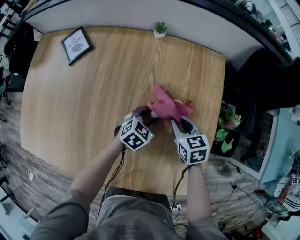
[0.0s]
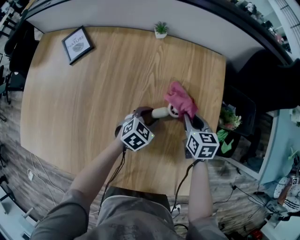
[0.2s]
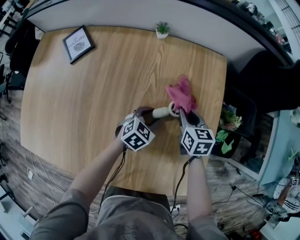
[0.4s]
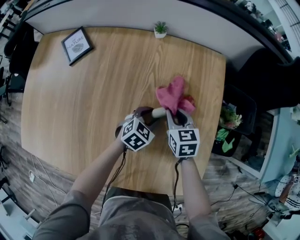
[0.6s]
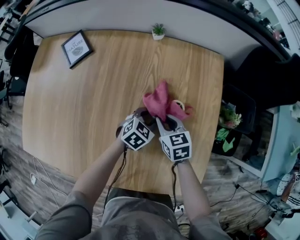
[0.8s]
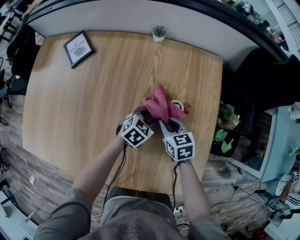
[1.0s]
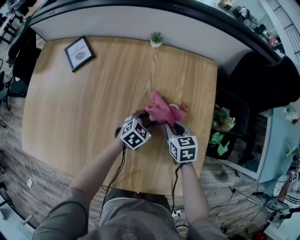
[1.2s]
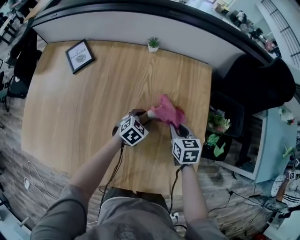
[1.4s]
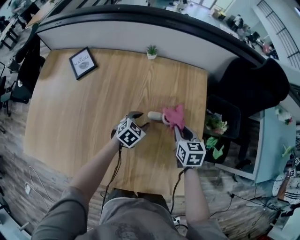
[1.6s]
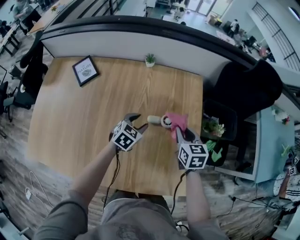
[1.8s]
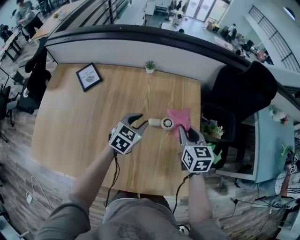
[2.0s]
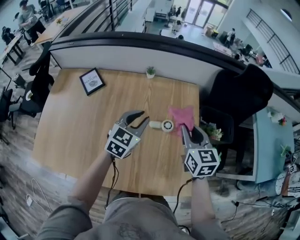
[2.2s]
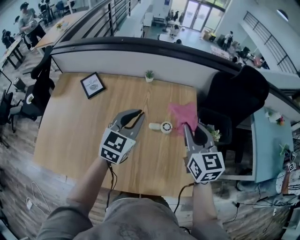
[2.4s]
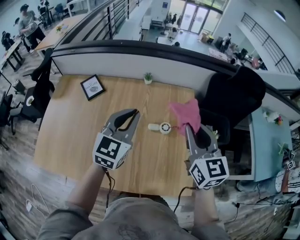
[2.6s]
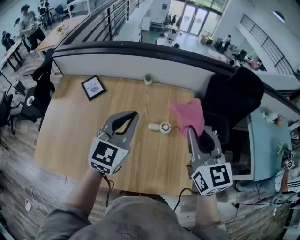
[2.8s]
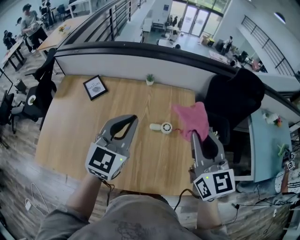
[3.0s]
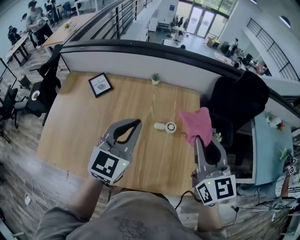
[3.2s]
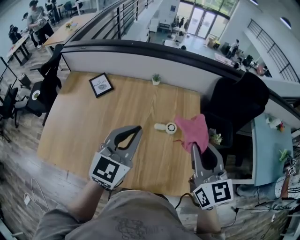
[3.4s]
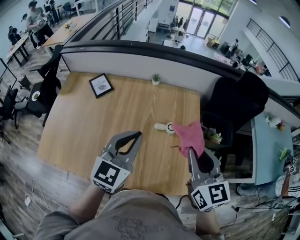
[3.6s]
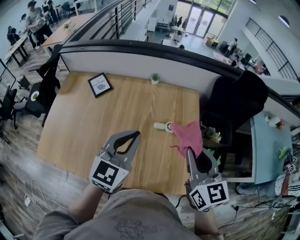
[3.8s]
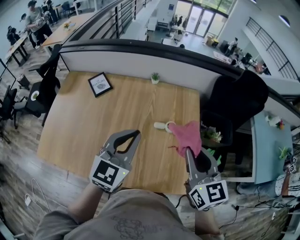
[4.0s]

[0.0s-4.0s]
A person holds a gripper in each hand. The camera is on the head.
0.0s to 1.4s: The right gripper goes left and right, roughly 10 cm each way, reversing 2 times.
1.4s to 2.6s: The grippers both shift upward by about 40 cm. The right gripper points its fingers roughly 40 degrees further upward. The left gripper tilts its fingers about 40 degrees upward, and closes.
2.6s to 4.0s: Both grippers move backward, some 10 cm.

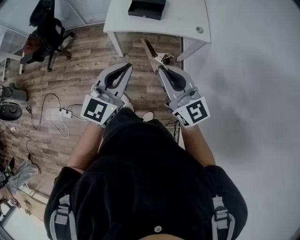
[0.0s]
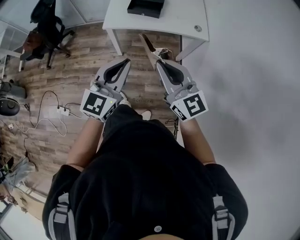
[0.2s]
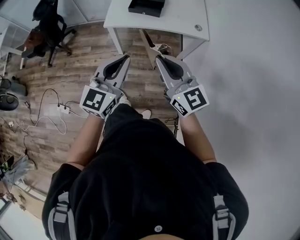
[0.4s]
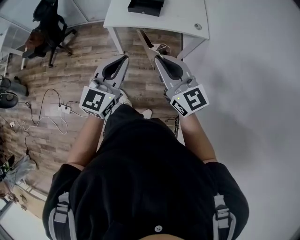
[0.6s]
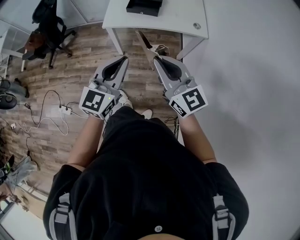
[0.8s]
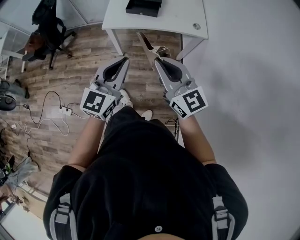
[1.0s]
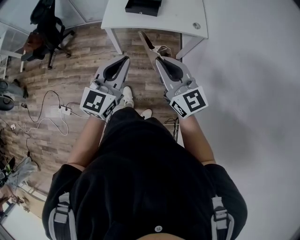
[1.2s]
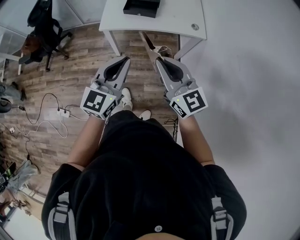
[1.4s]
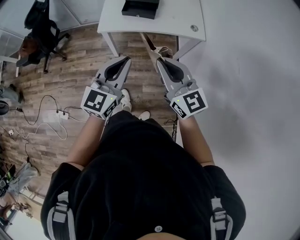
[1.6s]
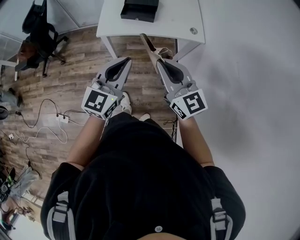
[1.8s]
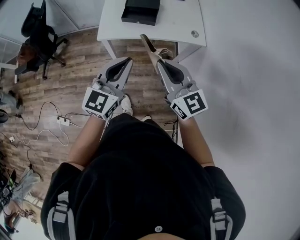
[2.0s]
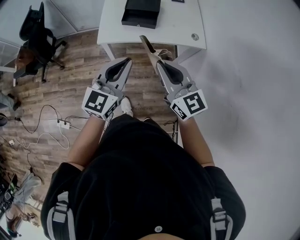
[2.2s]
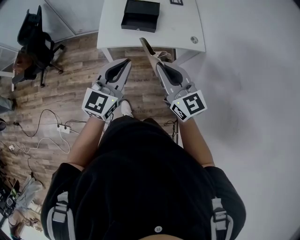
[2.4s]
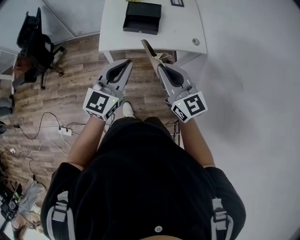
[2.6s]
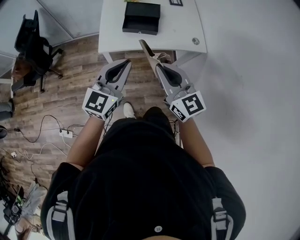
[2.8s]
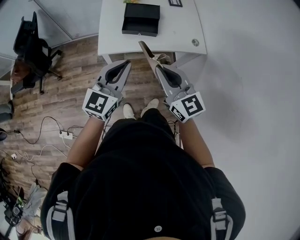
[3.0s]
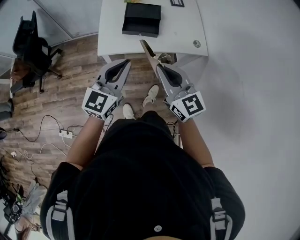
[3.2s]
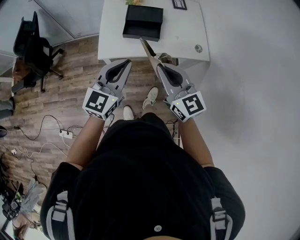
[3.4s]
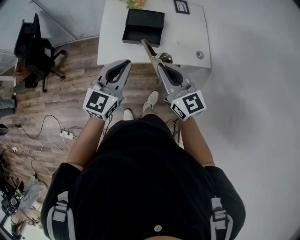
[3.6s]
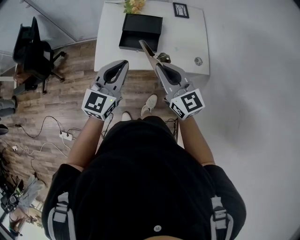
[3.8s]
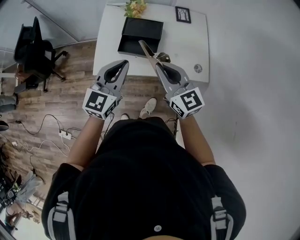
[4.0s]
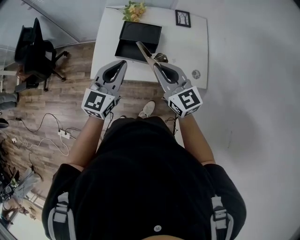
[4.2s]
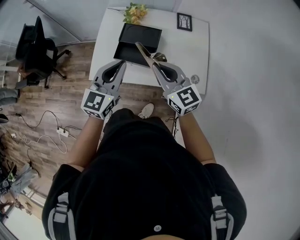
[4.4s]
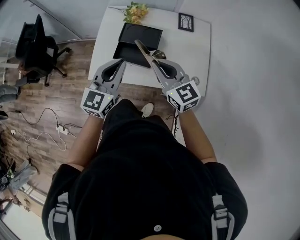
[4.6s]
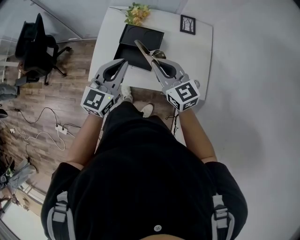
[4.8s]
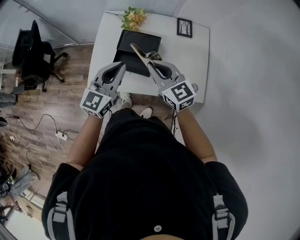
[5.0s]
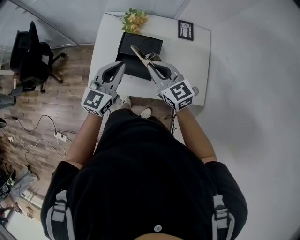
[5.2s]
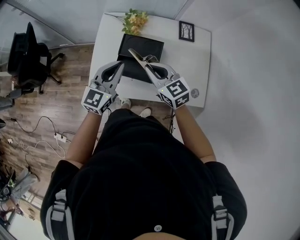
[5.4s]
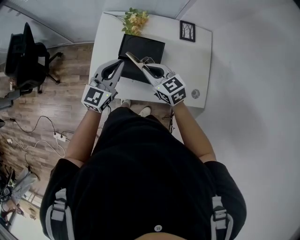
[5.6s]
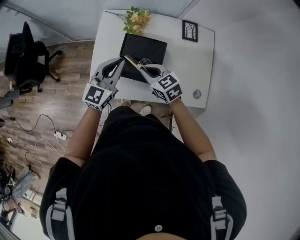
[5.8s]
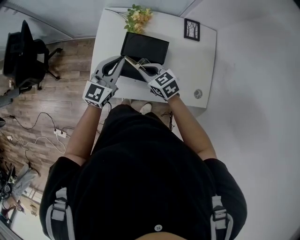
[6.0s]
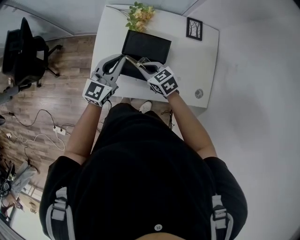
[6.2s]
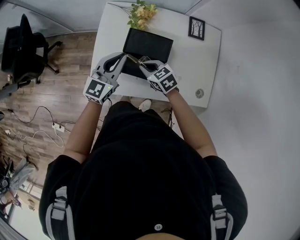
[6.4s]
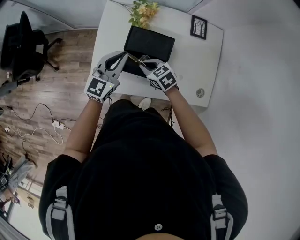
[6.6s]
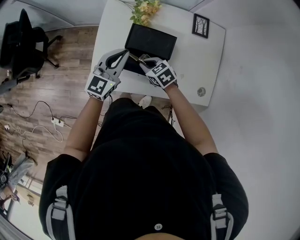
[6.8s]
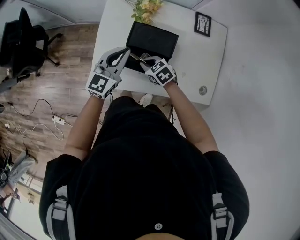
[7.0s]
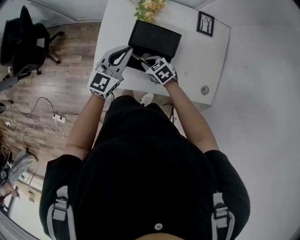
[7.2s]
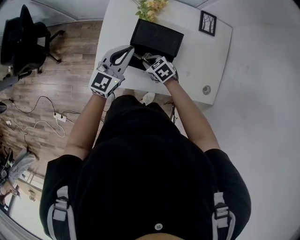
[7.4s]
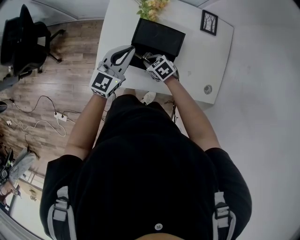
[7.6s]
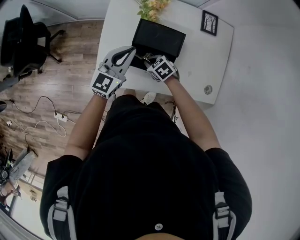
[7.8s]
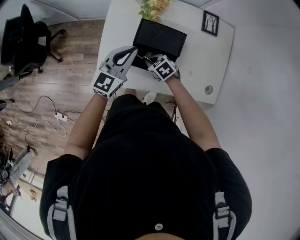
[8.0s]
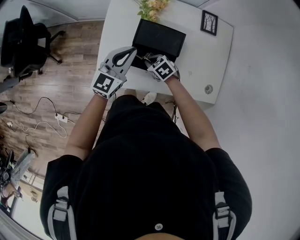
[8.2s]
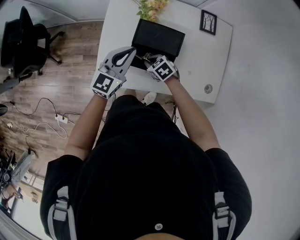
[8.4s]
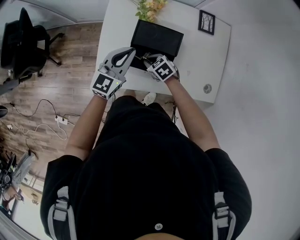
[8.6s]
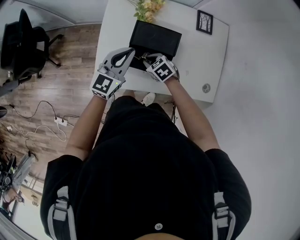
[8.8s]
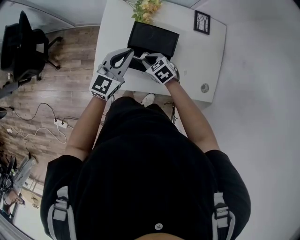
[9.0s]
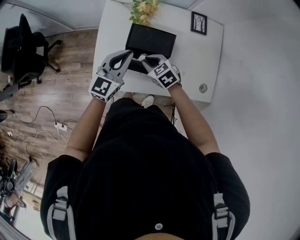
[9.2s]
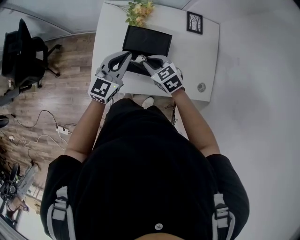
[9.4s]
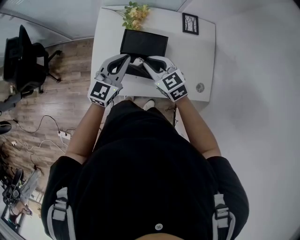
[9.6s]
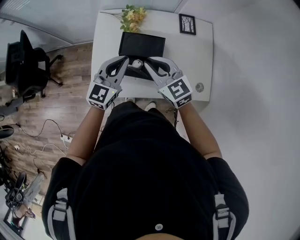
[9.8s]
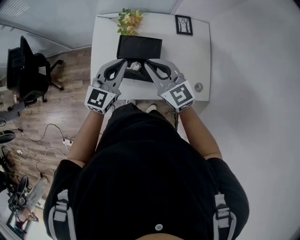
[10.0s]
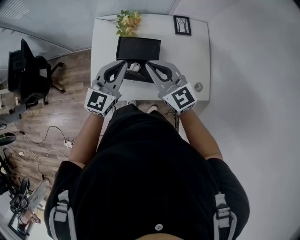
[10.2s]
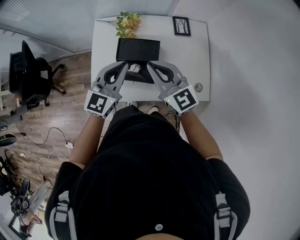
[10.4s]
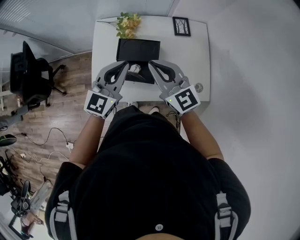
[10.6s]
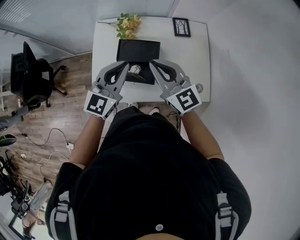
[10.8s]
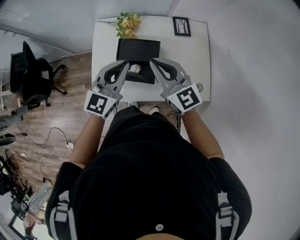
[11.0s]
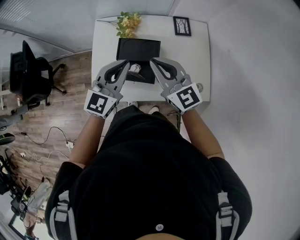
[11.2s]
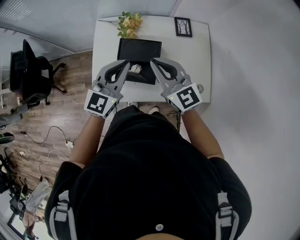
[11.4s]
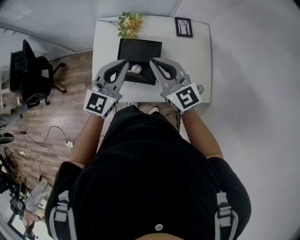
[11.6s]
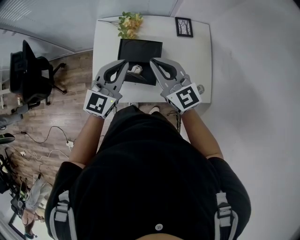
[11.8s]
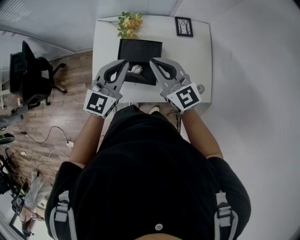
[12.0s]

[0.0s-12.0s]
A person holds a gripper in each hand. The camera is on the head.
0.0s to 1.6s: Both grippers move forward, some 5 cm.
1.6s to 3.0s: Both grippers travel together forward and to the left, roughly 15 cm.
3.0s to 4.4s: The grippers both shift forward and to the right by about 25 cm.
4.4s to 6.0s: The left gripper moves forward and downward, some 20 cm; the right gripper moves downward, forward and to the left, approximately 25 cm, and turns by roughly 30 degrees.
6.0s to 7.6s: The right gripper moves downward, roughly 15 cm, and turns by approximately 20 degrees.
7.6s to 9.0s: The right gripper ends up some 5 cm from where it was.
9.0s to 10.4s: The left gripper moves upward, about 10 cm; the right gripper goes approximately 30 cm upward, and tilts its fingers roughly 50 degrees upward.
10.4s to 12.0s: There are only small adjustments of the grippers.

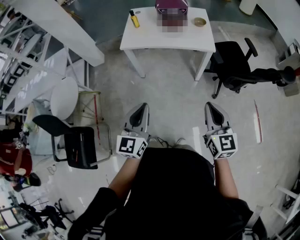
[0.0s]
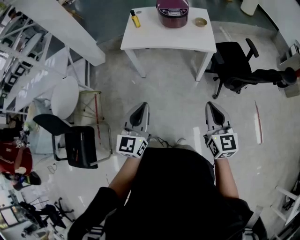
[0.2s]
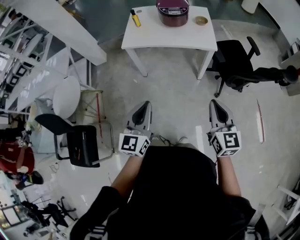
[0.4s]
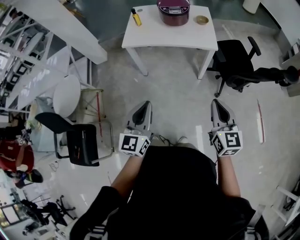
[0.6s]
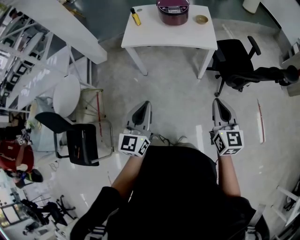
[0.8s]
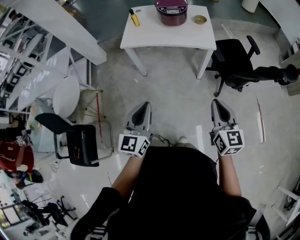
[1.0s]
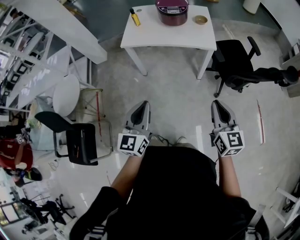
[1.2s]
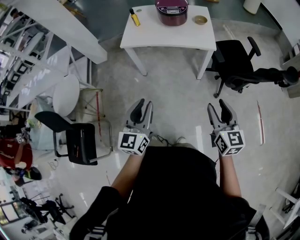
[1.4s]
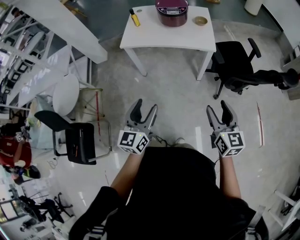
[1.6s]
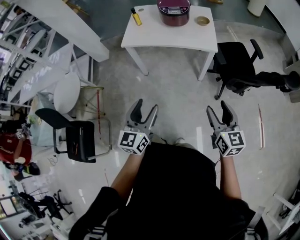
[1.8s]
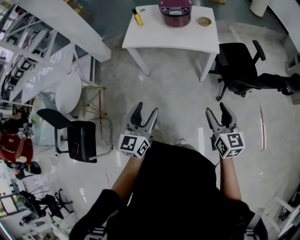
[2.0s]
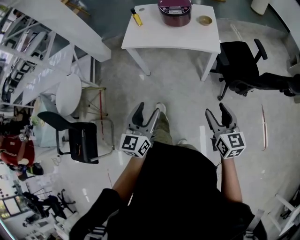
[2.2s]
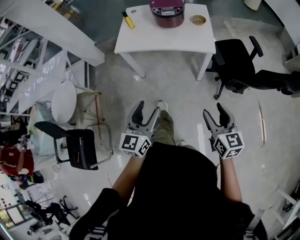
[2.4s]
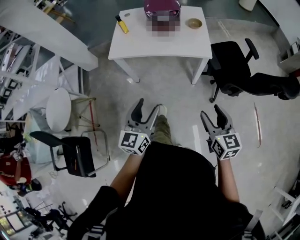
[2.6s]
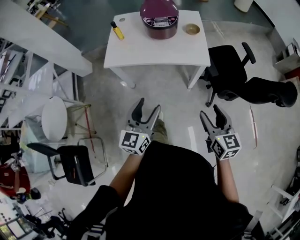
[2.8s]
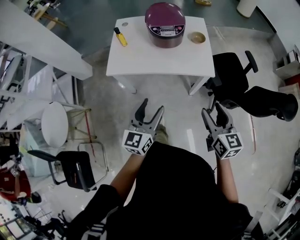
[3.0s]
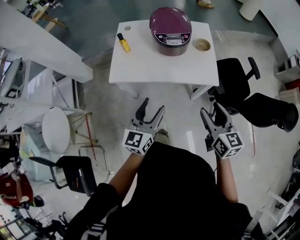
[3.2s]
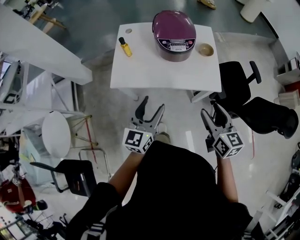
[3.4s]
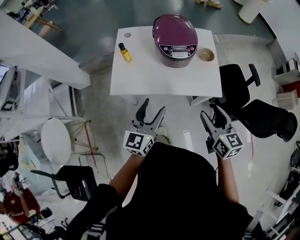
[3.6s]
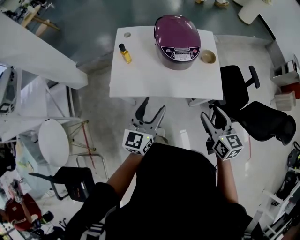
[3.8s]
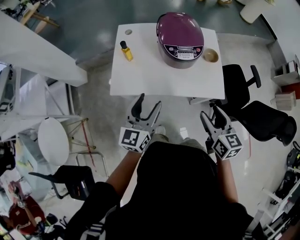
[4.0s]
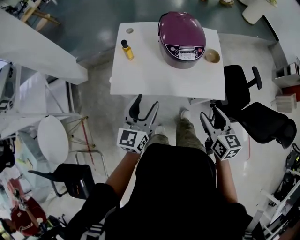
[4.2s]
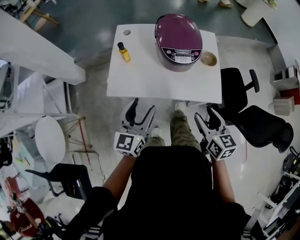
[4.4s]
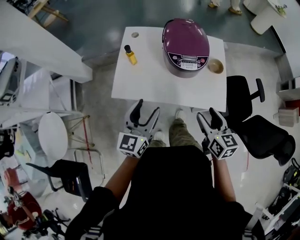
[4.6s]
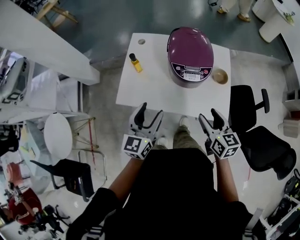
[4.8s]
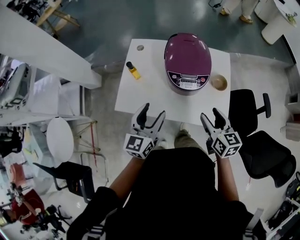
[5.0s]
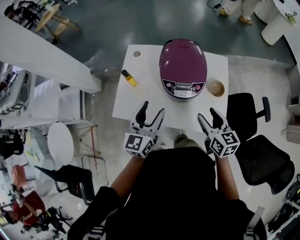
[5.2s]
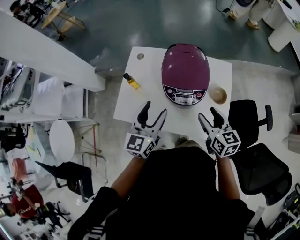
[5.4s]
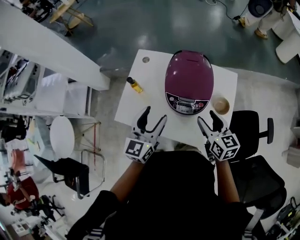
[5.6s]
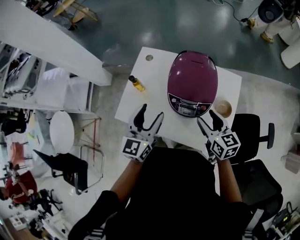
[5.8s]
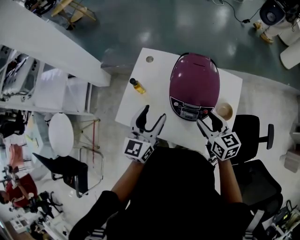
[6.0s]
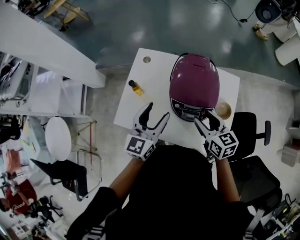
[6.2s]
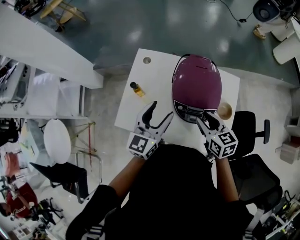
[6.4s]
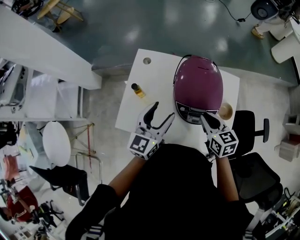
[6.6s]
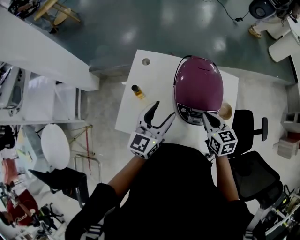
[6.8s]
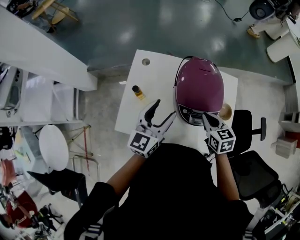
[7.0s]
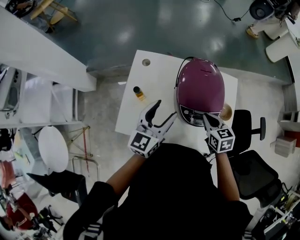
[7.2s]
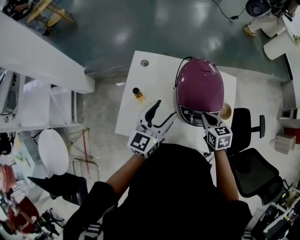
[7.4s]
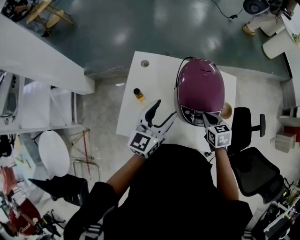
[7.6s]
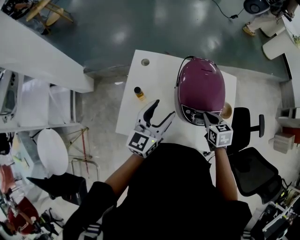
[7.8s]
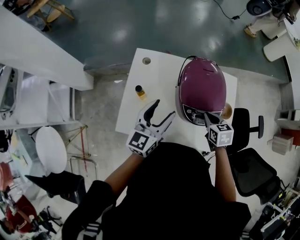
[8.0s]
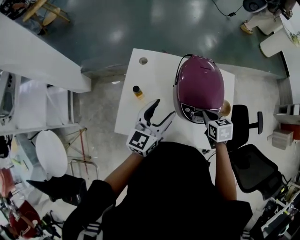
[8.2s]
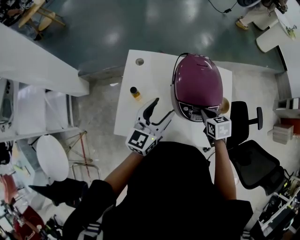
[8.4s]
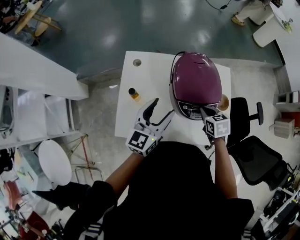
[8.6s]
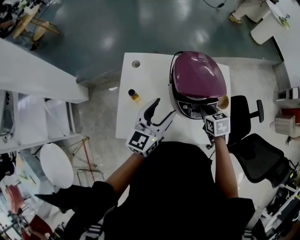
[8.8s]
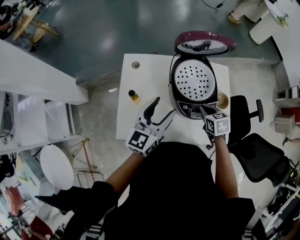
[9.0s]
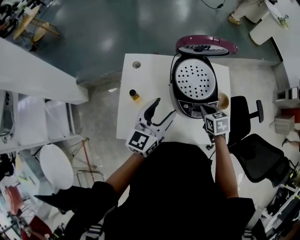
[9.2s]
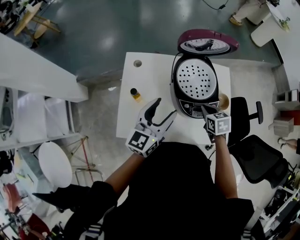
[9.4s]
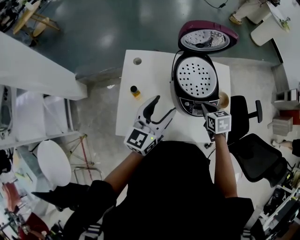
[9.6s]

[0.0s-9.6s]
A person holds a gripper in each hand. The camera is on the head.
0.0s to 1.6s: The left gripper moves approximately 5 cm, and opens up, while the right gripper goes some 10 cm to the right, and opens its fingers.
1.6s to 3.2s: Both grippers travel together forward, about 30 cm.
3.2s to 4.8s: Both grippers travel together forward, approximately 20 cm.
4.8s to 6.4s: The two grippers go some 20 cm forward.
6.4s to 8.0s: The right gripper travels downward by approximately 10 cm, swivels about 20 degrees, and closes its fingers. The left gripper moves to the left, roughly 5 cm.
8.0s to 9.6s: The grippers stay close to where they were, moving slightly.
